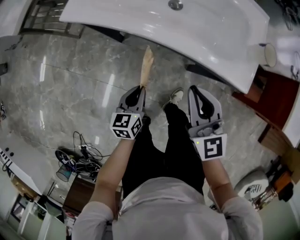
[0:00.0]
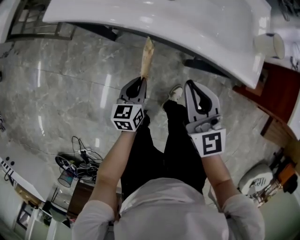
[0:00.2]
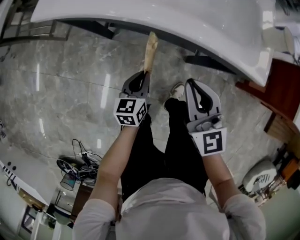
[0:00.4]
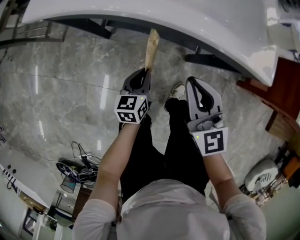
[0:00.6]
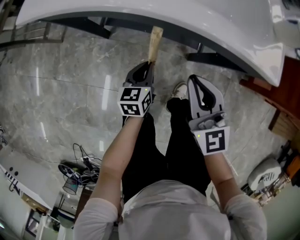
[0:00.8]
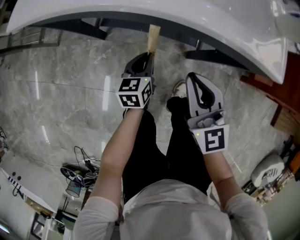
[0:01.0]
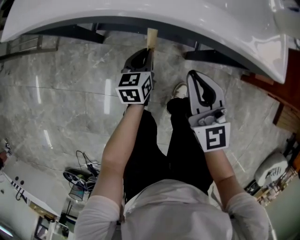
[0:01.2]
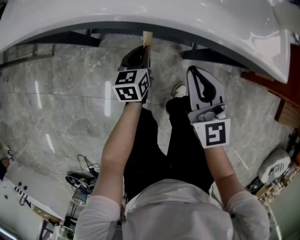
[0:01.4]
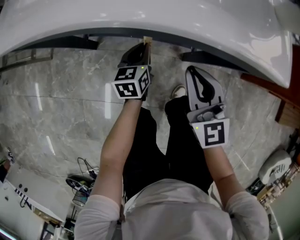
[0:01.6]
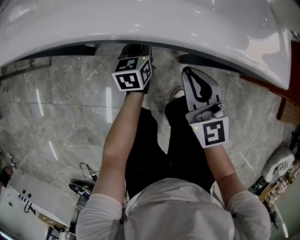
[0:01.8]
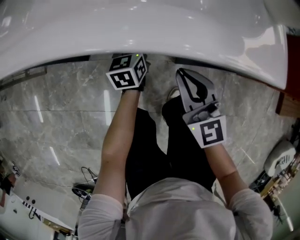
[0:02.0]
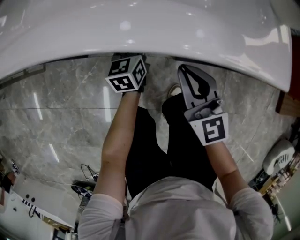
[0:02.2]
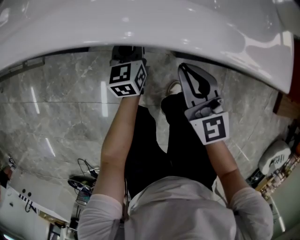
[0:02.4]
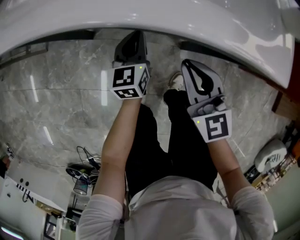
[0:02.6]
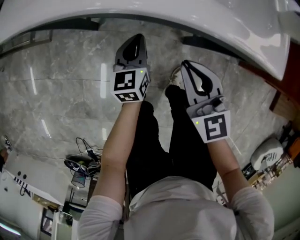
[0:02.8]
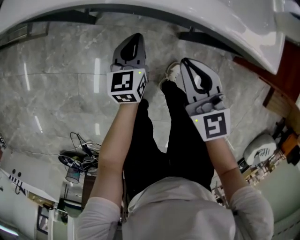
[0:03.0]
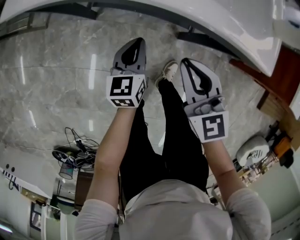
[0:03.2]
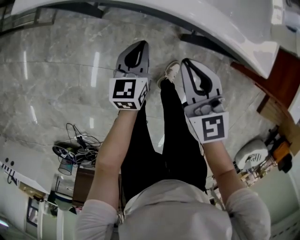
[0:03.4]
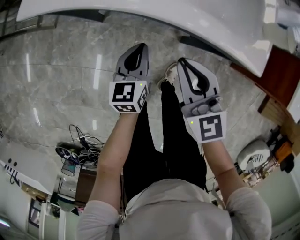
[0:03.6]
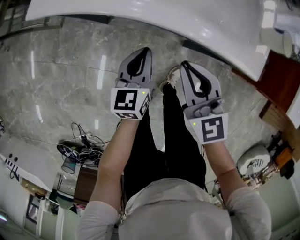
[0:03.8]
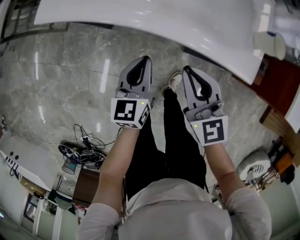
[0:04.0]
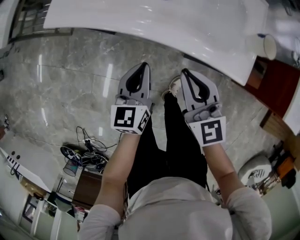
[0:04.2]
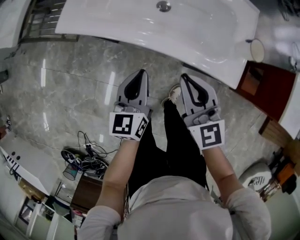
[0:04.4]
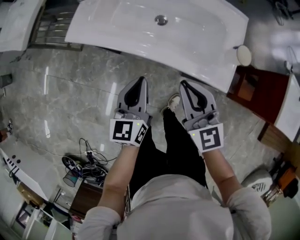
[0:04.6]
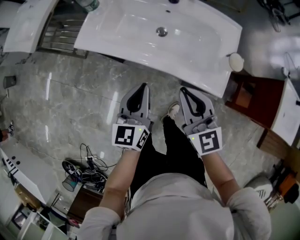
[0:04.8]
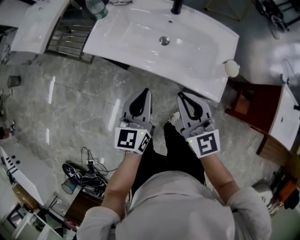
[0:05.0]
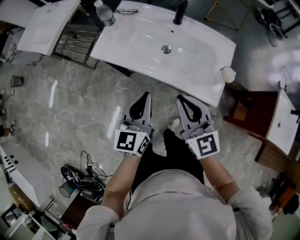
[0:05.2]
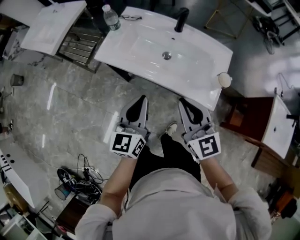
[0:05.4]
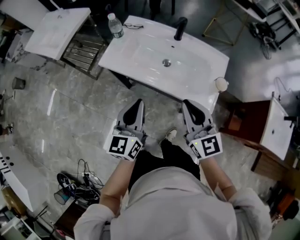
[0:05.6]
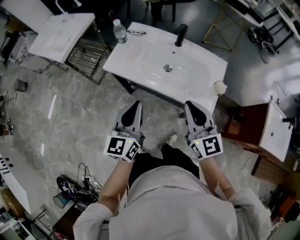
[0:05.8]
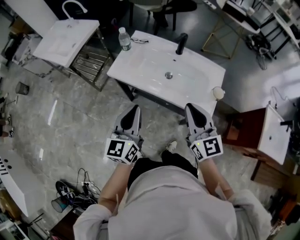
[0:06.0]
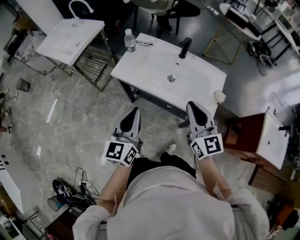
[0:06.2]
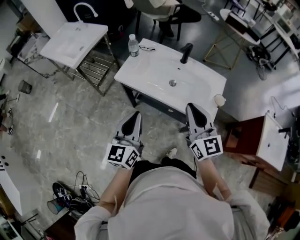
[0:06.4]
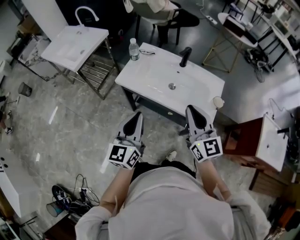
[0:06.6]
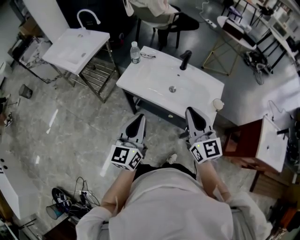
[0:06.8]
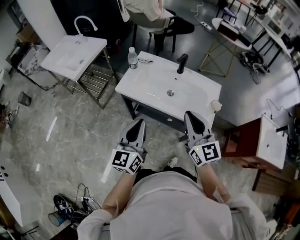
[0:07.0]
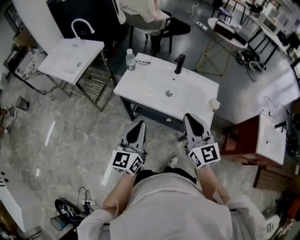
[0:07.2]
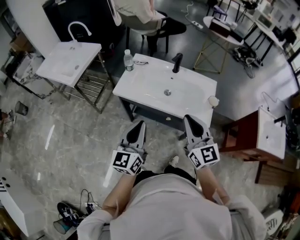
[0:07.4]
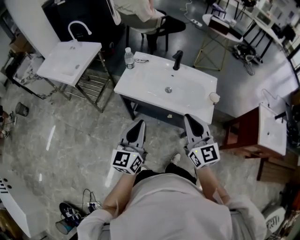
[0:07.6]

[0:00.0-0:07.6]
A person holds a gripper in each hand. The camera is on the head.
0:00.0 to 0:01.6: The right gripper is displaced downward by some 20 cm. The left gripper travels downward, forward and to the right by roughly 25 cm.
0:01.6 to 0:03.0: The right gripper shifts approximately 10 cm to the left and upward; the left gripper moves upward and to the left, about 10 cm.
0:03.0 to 0:04.6: The two grippers go roughly 20 cm upward.
0:04.6 to 0:06.0: The left gripper shifts about 20 cm upward and to the left; the right gripper shifts about 15 cm upward.
0:06.0 to 0:07.6: The left gripper shifts about 5 cm backward; the right gripper shifts about 10 cm backward and to the left.

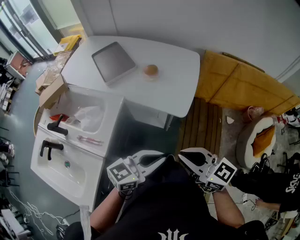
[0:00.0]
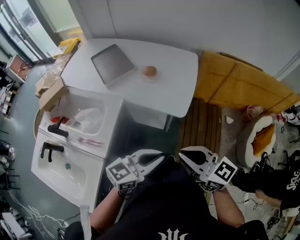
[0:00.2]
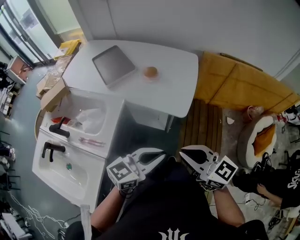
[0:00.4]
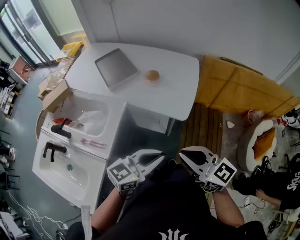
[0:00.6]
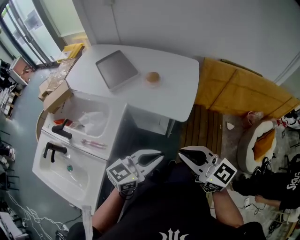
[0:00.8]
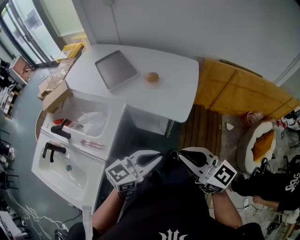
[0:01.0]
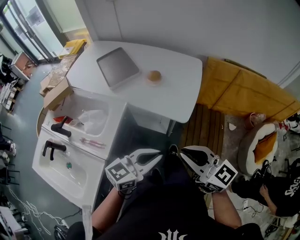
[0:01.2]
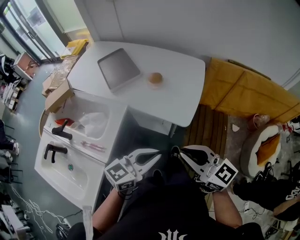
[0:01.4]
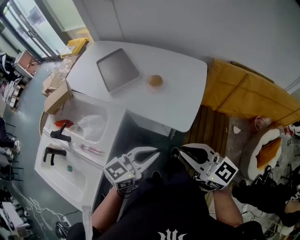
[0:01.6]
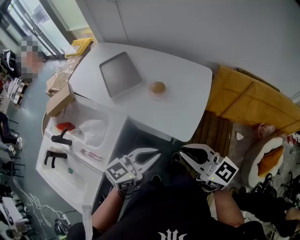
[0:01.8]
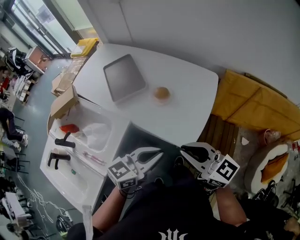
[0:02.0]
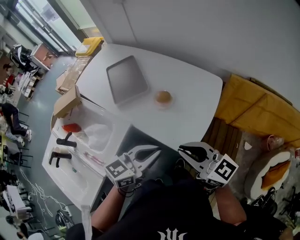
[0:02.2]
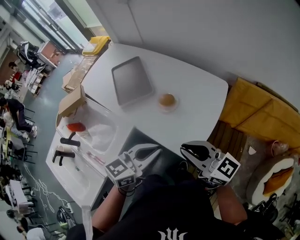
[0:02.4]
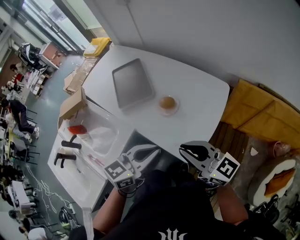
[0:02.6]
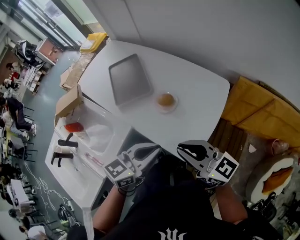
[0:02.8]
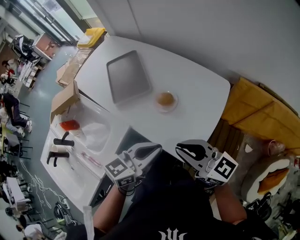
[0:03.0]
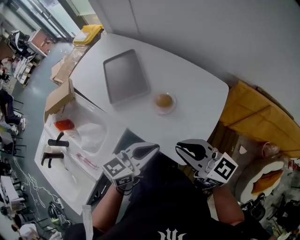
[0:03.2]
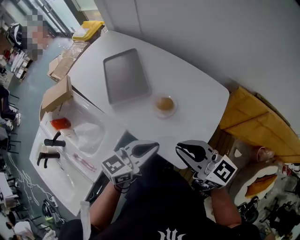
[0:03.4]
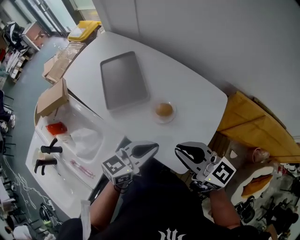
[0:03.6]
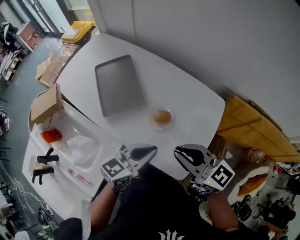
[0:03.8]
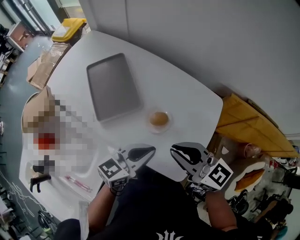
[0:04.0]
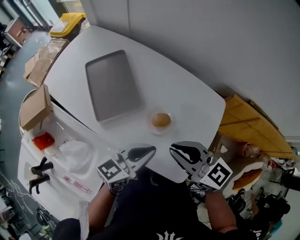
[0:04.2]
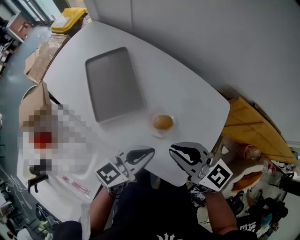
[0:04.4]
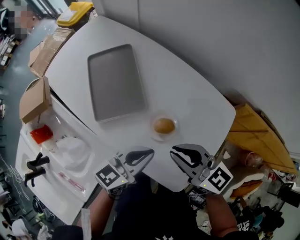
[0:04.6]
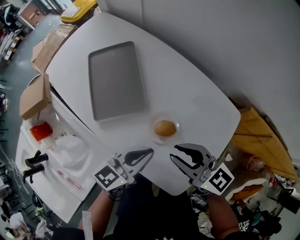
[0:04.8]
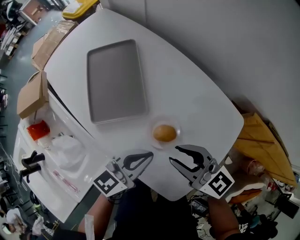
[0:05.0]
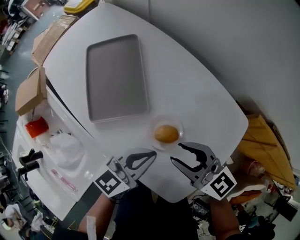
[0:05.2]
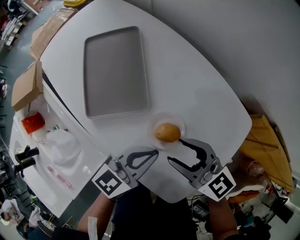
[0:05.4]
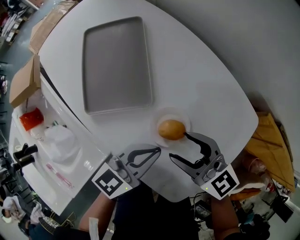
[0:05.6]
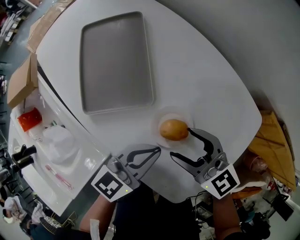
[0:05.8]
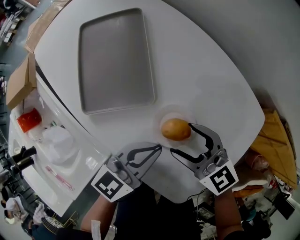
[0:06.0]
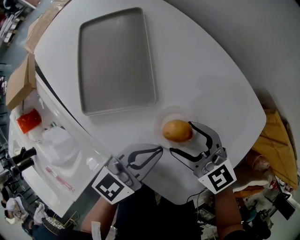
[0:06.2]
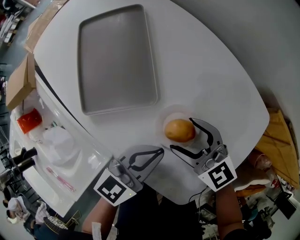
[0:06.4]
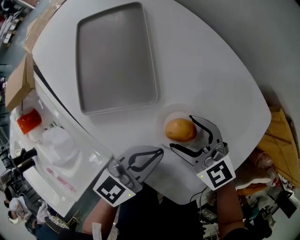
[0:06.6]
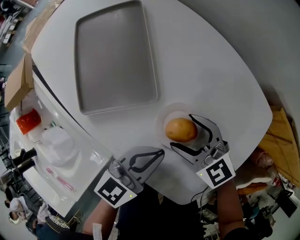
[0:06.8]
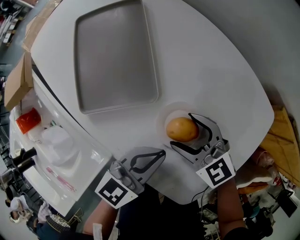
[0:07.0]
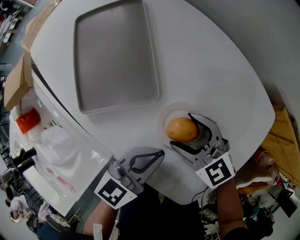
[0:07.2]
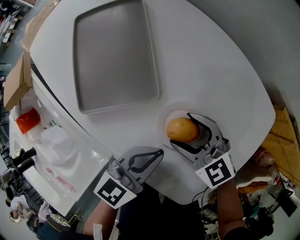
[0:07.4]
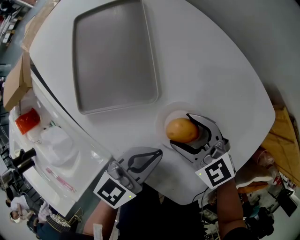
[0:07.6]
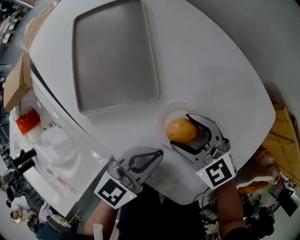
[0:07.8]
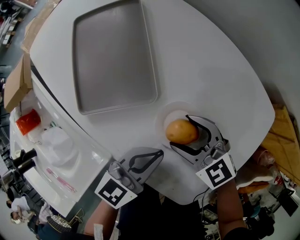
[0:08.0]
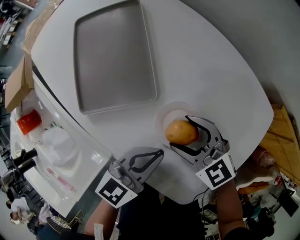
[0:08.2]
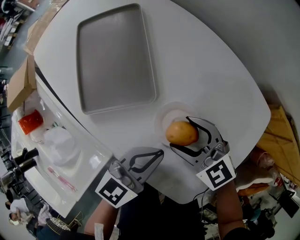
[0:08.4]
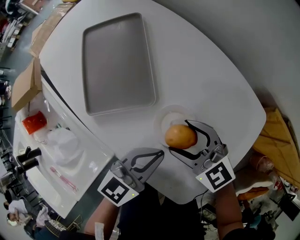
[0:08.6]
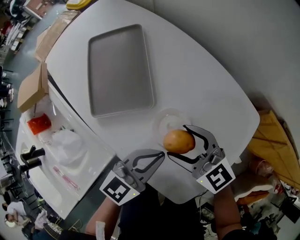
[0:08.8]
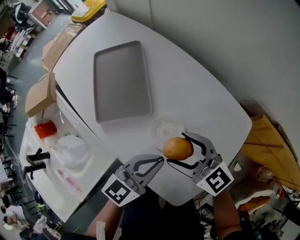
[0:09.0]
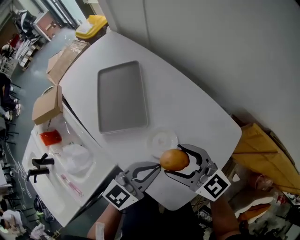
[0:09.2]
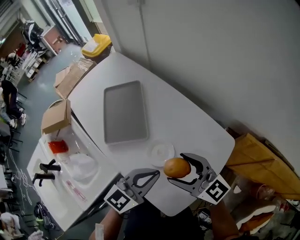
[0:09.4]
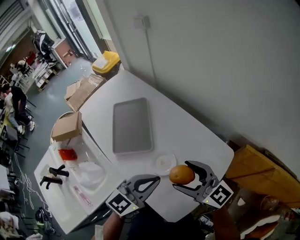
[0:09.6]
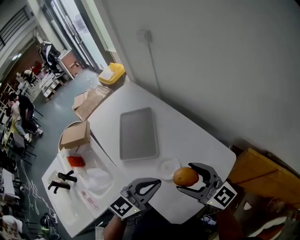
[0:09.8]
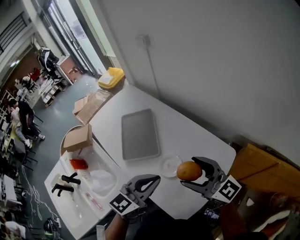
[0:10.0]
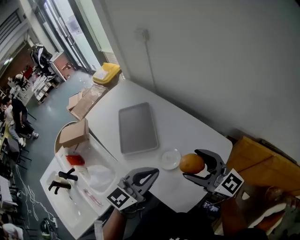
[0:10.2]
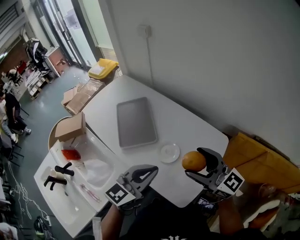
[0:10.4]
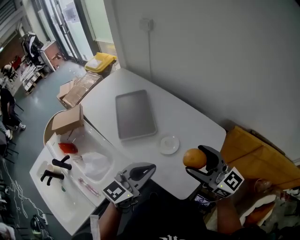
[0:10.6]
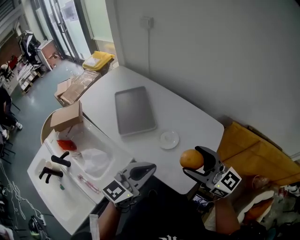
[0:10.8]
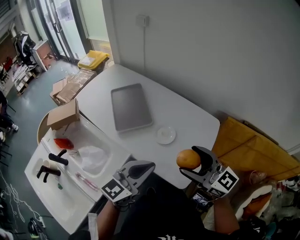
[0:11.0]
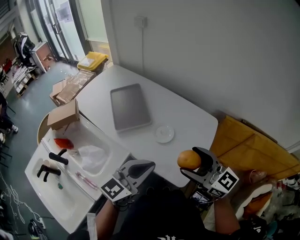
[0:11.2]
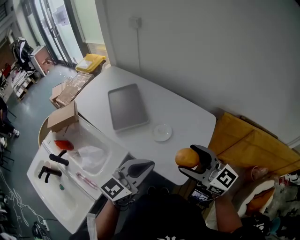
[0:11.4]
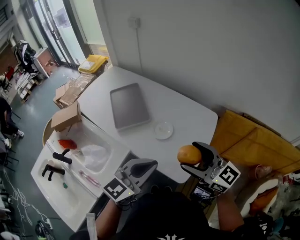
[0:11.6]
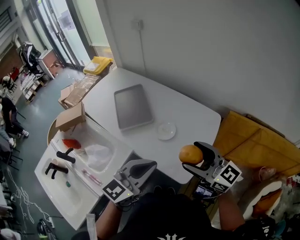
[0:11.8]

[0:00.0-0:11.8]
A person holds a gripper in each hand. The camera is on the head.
0:00.0 to 0:01.4: The left gripper ends up some 5 cm from where it was. The right gripper moves about 5 cm.
0:01.4 to 0:03.0: The grippers both shift forward by about 25 cm.
0:03.0 to 0:04.4: The right gripper heads forward and to the left, covering approximately 20 cm, while the left gripper goes roughly 20 cm forward.
0:04.4 to 0:06.0: Both grippers move downward, about 15 cm. The right gripper opens up.
0:06.0 to 0:07.4: The right gripper is displaced downward by approximately 5 cm.
0:07.4 to 0:08.8: The grippers both shift upward by some 10 cm.
0:08.8 to 0:10.4: The left gripper travels upward by roughly 25 cm. The right gripper shifts roughly 30 cm upward and backward, and rotates some 30 degrees.
0:10.4 to 0:11.8: Both grippers move backward, about 15 cm.

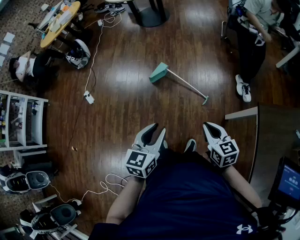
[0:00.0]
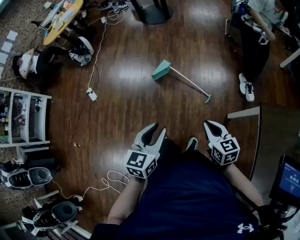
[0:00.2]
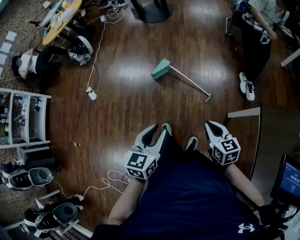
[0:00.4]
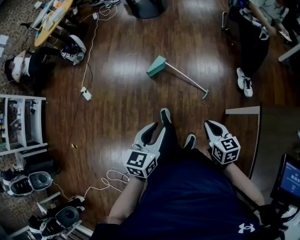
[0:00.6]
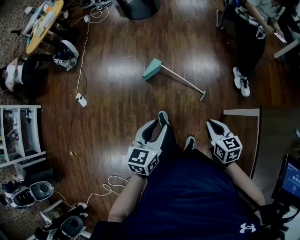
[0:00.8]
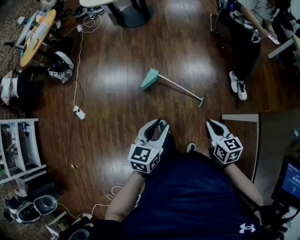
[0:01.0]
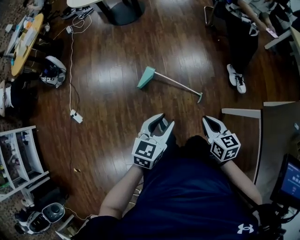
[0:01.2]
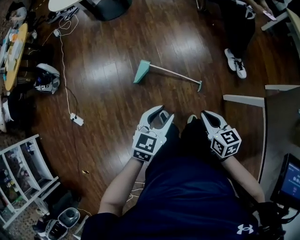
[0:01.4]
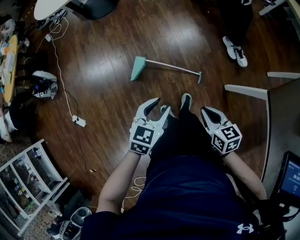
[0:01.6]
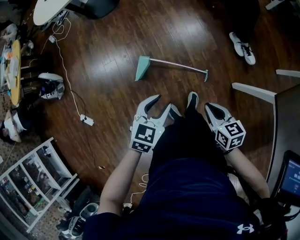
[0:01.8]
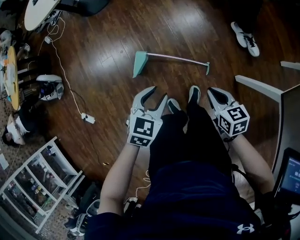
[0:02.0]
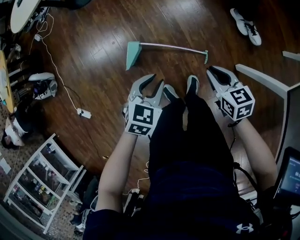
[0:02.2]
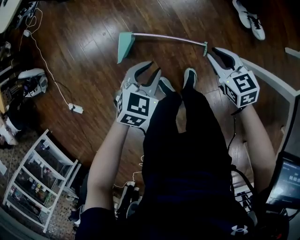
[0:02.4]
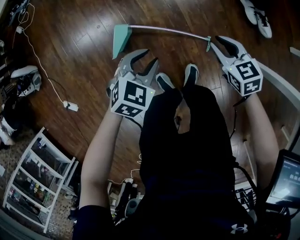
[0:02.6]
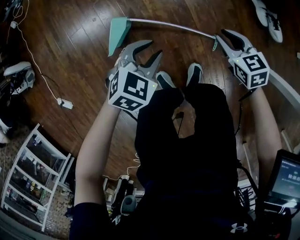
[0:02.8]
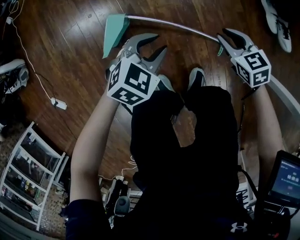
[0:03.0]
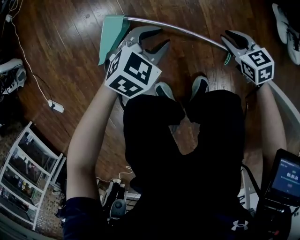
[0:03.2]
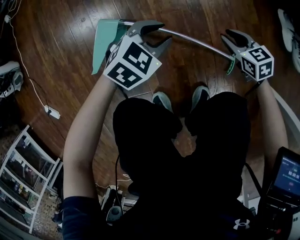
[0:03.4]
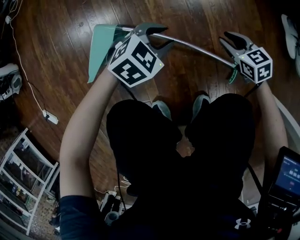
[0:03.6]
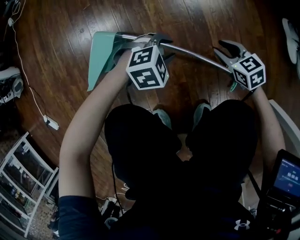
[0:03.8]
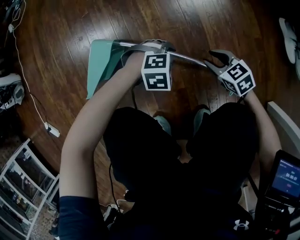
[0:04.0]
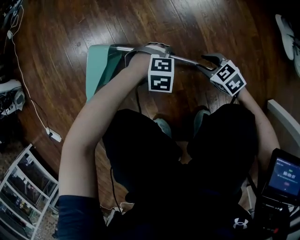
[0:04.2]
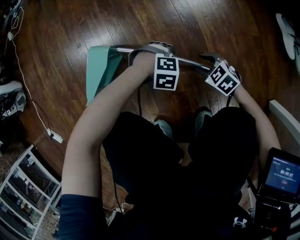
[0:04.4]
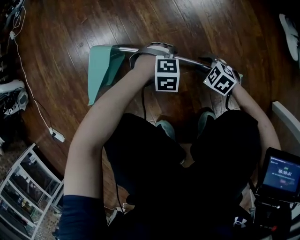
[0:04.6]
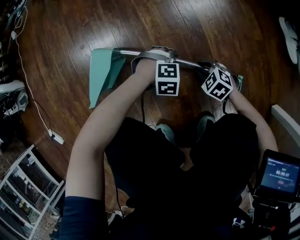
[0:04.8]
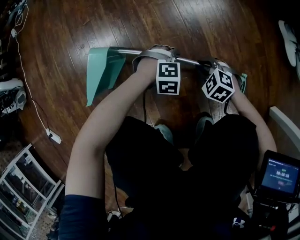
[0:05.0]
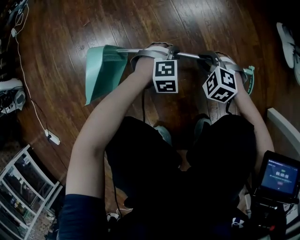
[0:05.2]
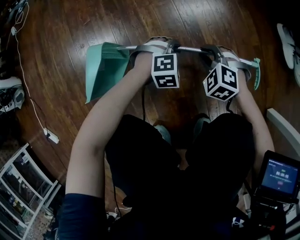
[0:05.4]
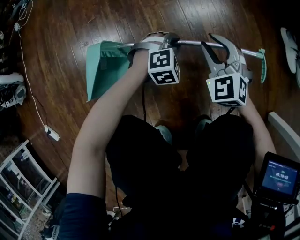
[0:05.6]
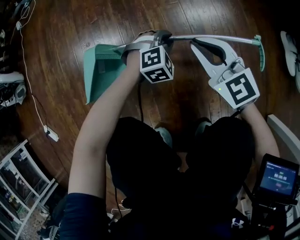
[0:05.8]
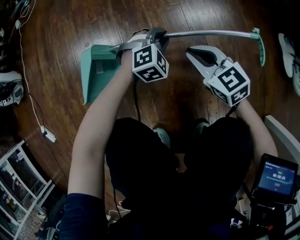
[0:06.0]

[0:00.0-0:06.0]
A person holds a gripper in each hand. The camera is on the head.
0:00.0 to 0:01.6: The right gripper is displaced forward and downward by about 15 cm, and turns by approximately 20 degrees, while the left gripper travels forward and downward by about 30 cm, and turns by some 40 degrees.
0:01.6 to 0:03.0: The right gripper shifts roughly 40 cm downward and forward, and swivels approximately 30 degrees, while the left gripper goes approximately 35 cm downward, and changes its angle by some 30 degrees.
0:03.0 to 0:04.4: Both grippers move downward, approximately 30 cm. The left gripper rolls clockwise, seen from behind, by approximately 40 degrees, while the right gripper turns by about 20 degrees.
0:04.4 to 0:06.0: The left gripper changes place by about 15 cm, and turns by approximately 40 degrees. Meanwhile the right gripper goes roughly 15 cm upward, changes its angle by approximately 30 degrees, and closes up.
